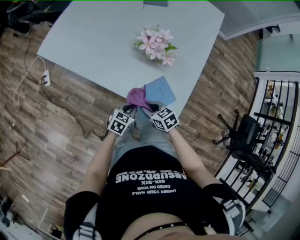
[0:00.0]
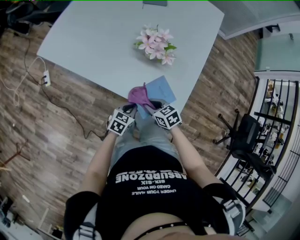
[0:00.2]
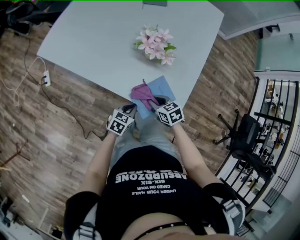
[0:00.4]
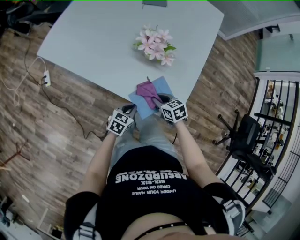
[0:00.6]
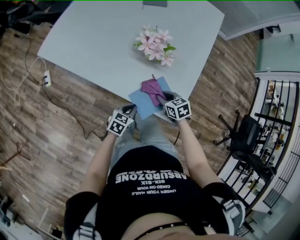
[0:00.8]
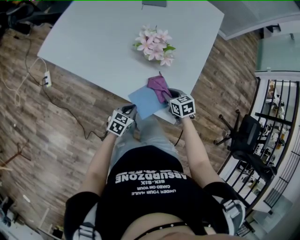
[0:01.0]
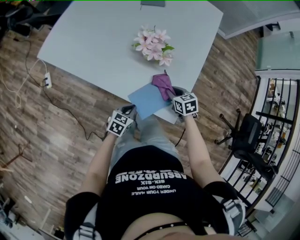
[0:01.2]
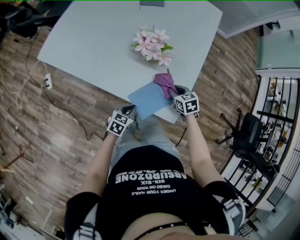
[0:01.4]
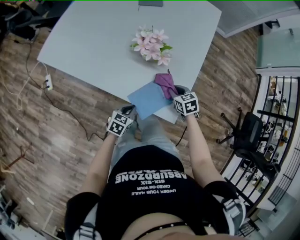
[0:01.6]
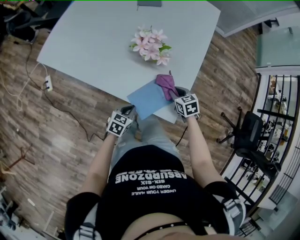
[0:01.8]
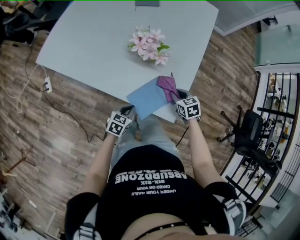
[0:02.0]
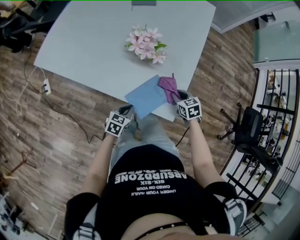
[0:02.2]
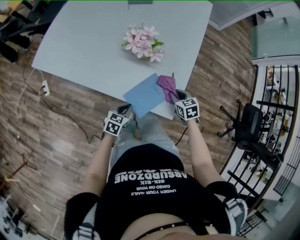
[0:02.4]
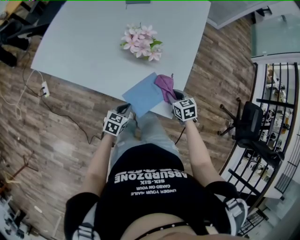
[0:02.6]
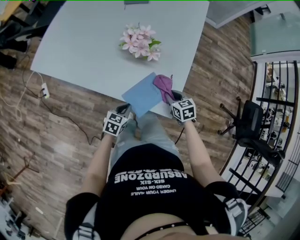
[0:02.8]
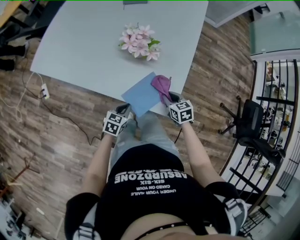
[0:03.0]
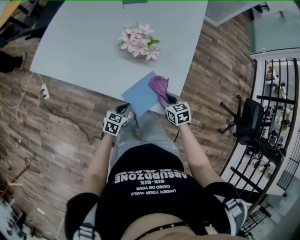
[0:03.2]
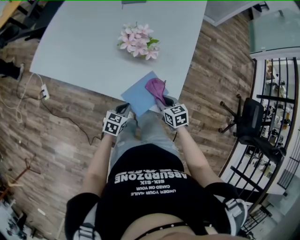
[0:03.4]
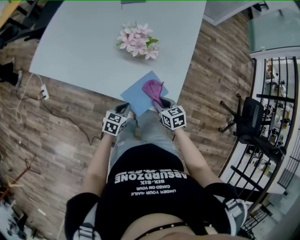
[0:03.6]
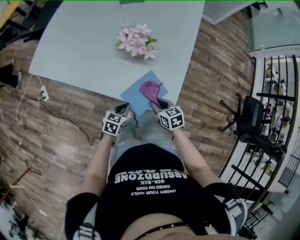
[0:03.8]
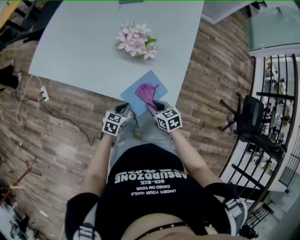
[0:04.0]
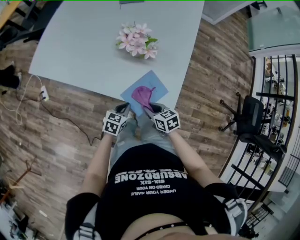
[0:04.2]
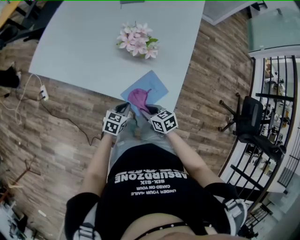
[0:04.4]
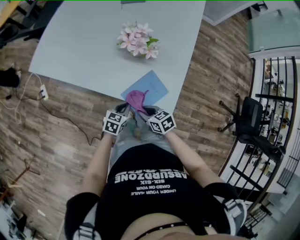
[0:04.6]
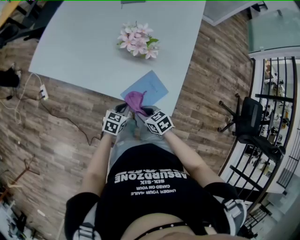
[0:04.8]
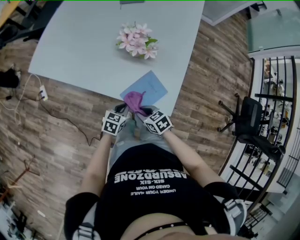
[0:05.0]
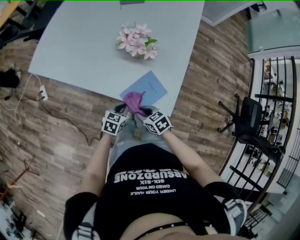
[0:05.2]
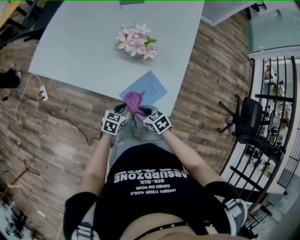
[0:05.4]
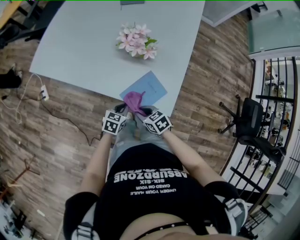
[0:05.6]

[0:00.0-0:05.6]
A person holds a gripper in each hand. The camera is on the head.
0:00.0 to 0:01.4: The right gripper heads to the right and forward, covering about 20 cm, and changes its angle by roughly 20 degrees.
0:01.4 to 0:02.8: The right gripper shifts some 5 cm backward.
0:02.8 to 0:04.2: The right gripper goes approximately 15 cm to the left and backward.
0:04.2 to 0:05.6: The grippers stay close to where they were, moving slightly.

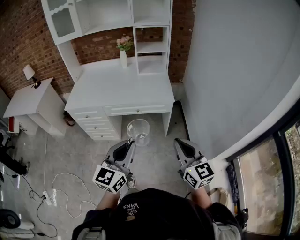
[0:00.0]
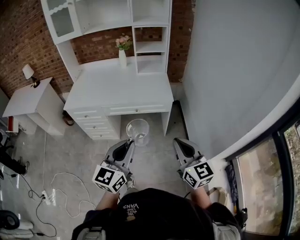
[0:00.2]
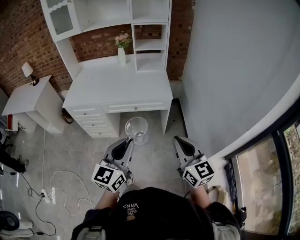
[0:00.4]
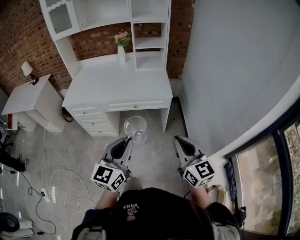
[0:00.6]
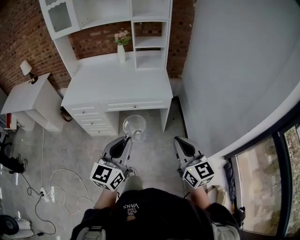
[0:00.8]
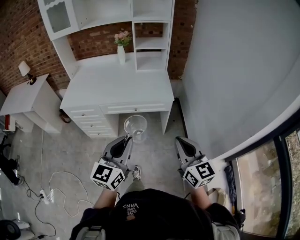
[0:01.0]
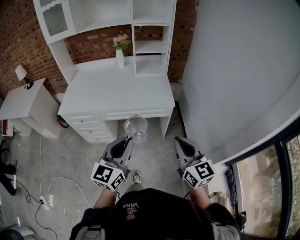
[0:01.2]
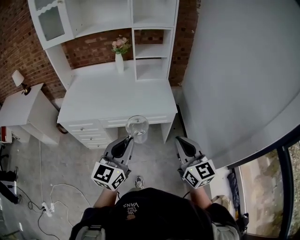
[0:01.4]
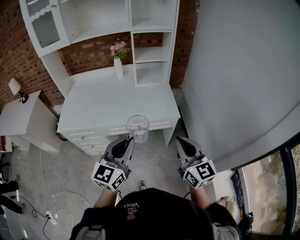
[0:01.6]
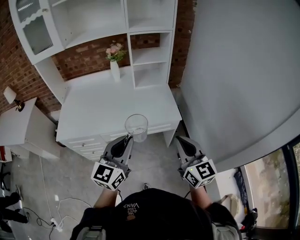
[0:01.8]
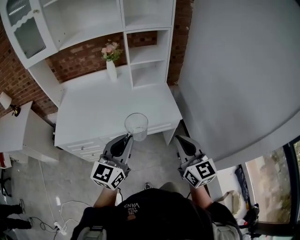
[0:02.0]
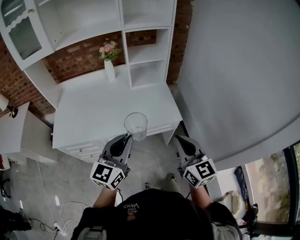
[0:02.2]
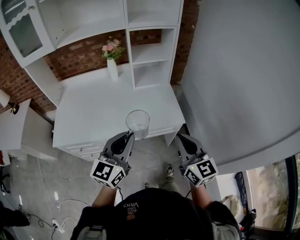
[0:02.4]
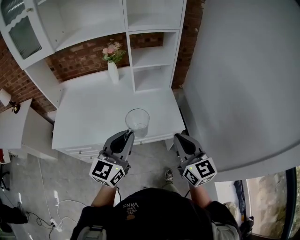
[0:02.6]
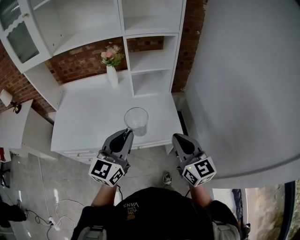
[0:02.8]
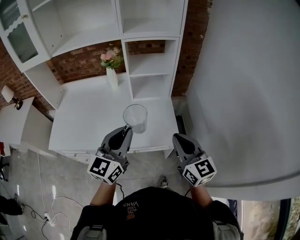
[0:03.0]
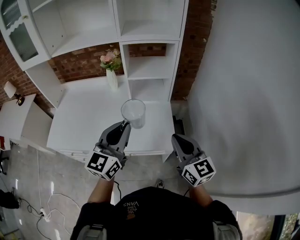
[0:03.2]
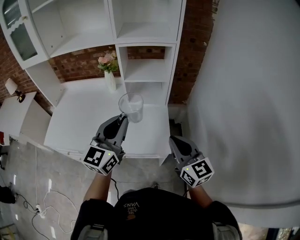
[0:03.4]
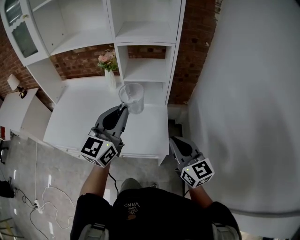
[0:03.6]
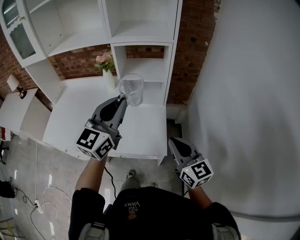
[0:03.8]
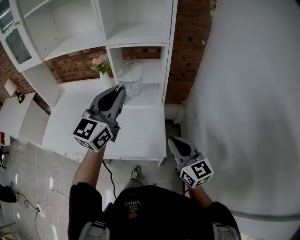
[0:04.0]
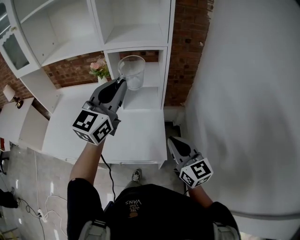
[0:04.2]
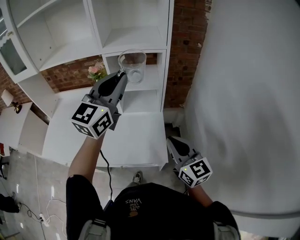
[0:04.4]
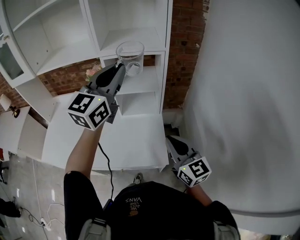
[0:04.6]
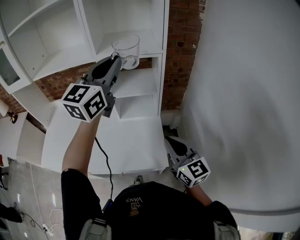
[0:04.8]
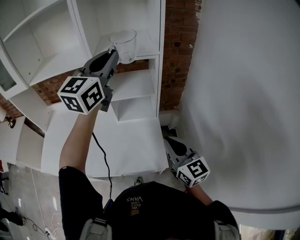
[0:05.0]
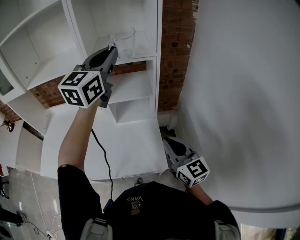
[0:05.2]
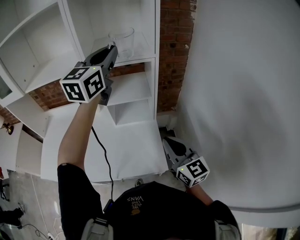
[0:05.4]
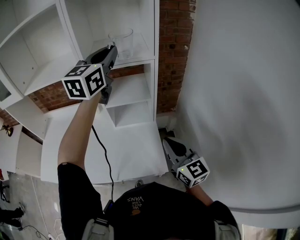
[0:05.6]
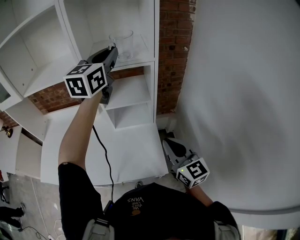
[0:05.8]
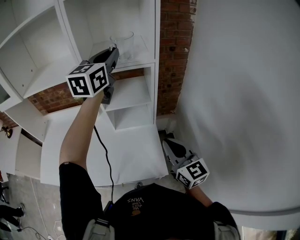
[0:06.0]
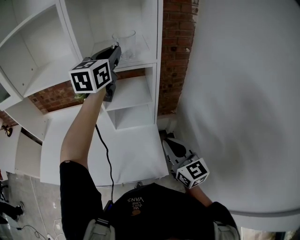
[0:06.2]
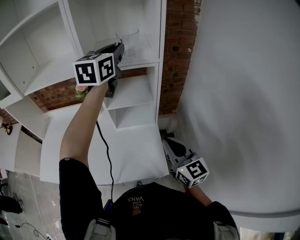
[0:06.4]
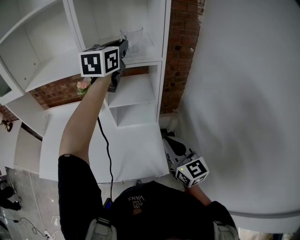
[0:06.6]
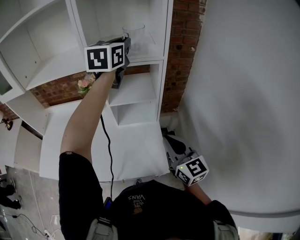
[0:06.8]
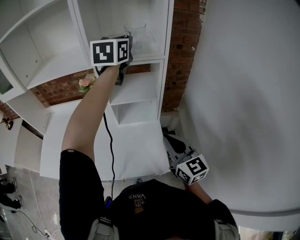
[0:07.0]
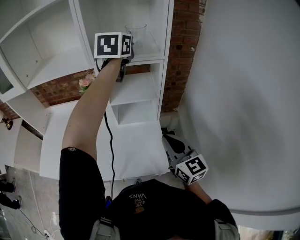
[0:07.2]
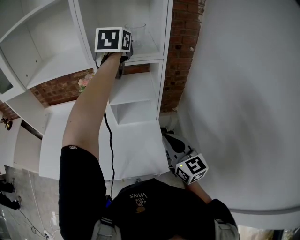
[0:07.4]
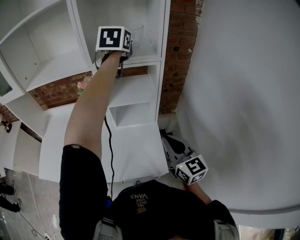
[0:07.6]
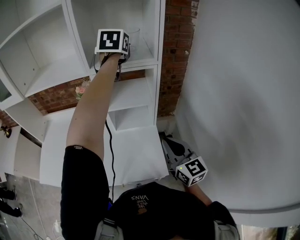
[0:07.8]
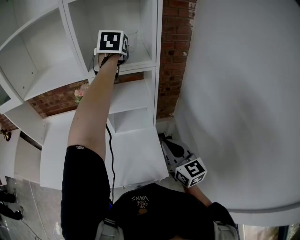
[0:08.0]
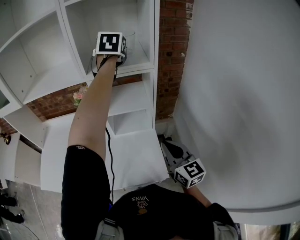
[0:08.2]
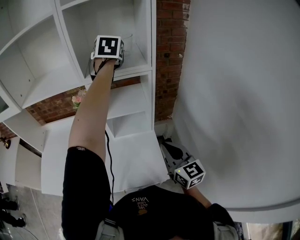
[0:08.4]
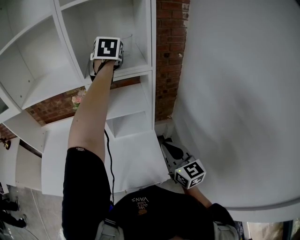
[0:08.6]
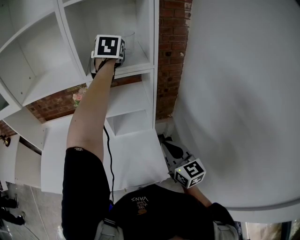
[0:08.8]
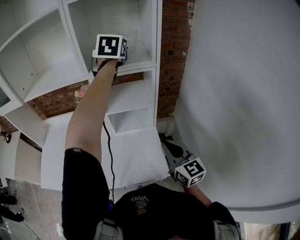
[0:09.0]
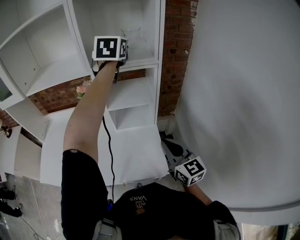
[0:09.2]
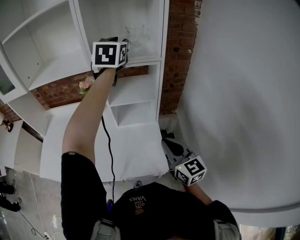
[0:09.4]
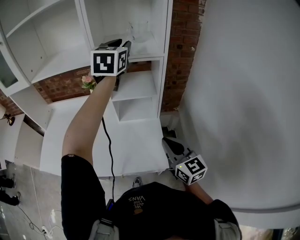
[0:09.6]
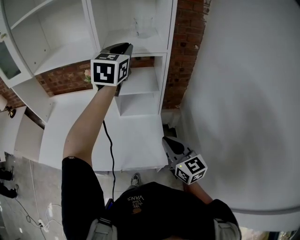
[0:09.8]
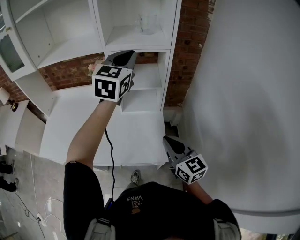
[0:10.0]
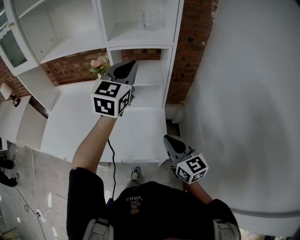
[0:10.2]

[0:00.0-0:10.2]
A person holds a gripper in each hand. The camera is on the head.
0:00.0 to 0:01.4: The grippers both shift forward by roughly 15 cm.
0:01.4 to 0:03.0: The two grippers go approximately 30 cm forward.
0:03.0 to 0:04.4: The left gripper shifts approximately 30 cm forward, upward and to the right. Meanwhile the right gripper travels forward and to the right by approximately 15 cm.
0:04.4 to 0:05.8: The right gripper moves forward, some 5 cm. The left gripper travels forward by approximately 20 cm.
0:05.8 to 0:07.2: The left gripper shifts roughly 5 cm forward.
0:07.2 to 0:08.8: There are only small adjustments of the grippers.
0:08.8 to 0:10.2: The left gripper heads backward, covering approximately 25 cm, turns by approximately 20 degrees, and closes its fingers, while the right gripper is displaced backward by about 5 cm.

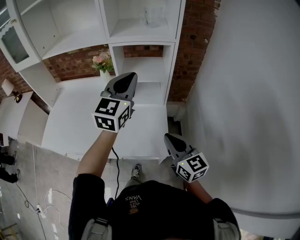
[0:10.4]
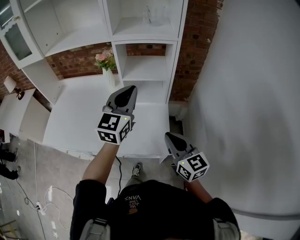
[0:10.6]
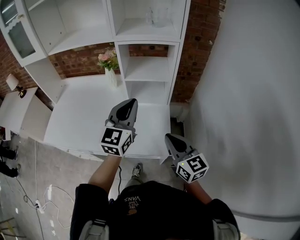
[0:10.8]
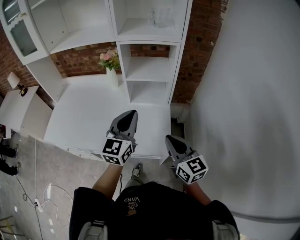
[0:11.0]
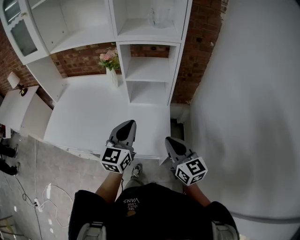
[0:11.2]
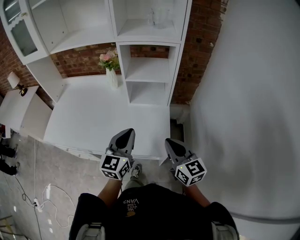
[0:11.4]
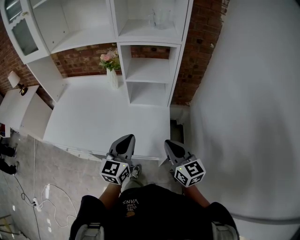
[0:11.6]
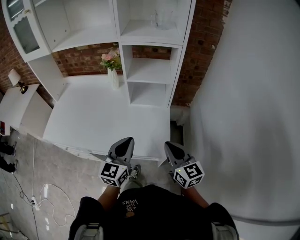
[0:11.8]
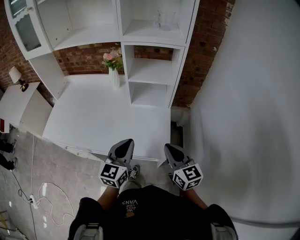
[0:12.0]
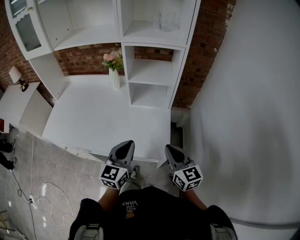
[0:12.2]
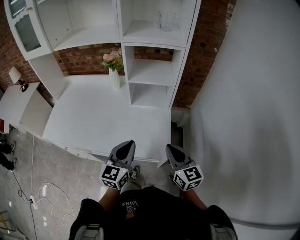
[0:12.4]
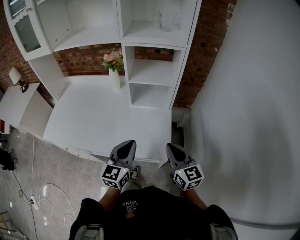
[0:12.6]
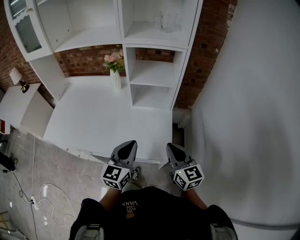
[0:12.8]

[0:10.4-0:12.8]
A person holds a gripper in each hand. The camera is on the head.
0:10.4 to 0:11.6: The left gripper moves downward and backward, some 25 cm.
0:11.6 to 0:12.8: The grippers stay close to where they were, moving slightly.

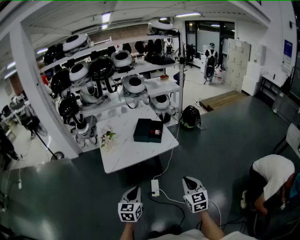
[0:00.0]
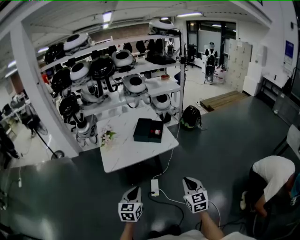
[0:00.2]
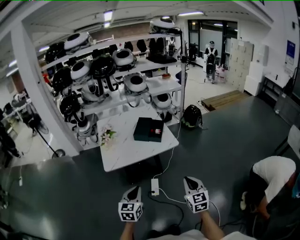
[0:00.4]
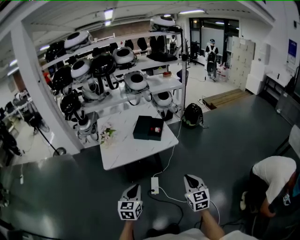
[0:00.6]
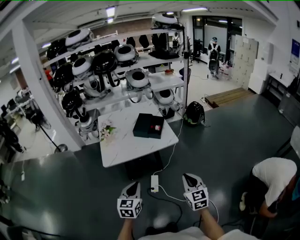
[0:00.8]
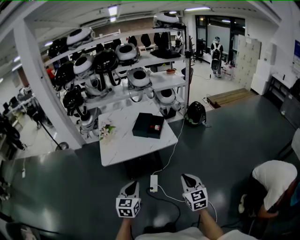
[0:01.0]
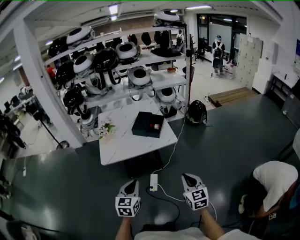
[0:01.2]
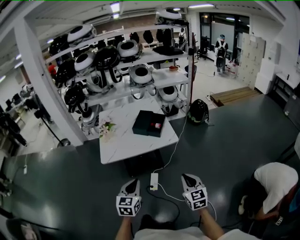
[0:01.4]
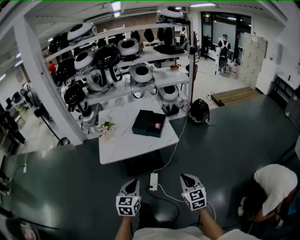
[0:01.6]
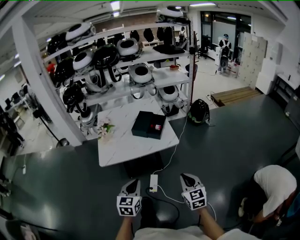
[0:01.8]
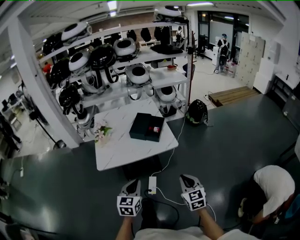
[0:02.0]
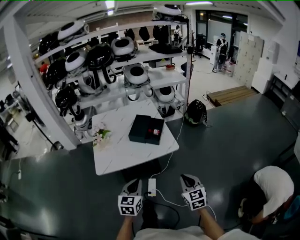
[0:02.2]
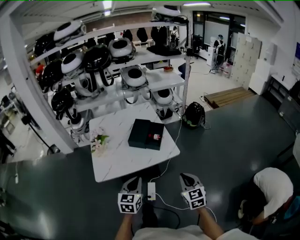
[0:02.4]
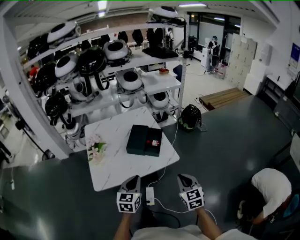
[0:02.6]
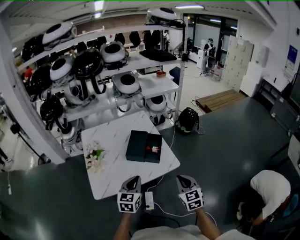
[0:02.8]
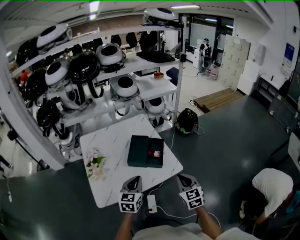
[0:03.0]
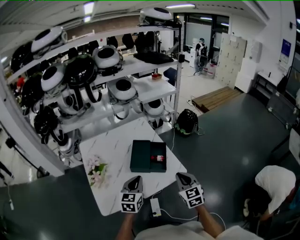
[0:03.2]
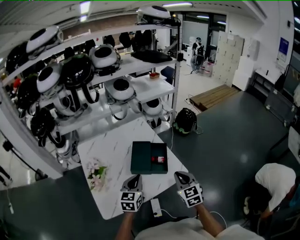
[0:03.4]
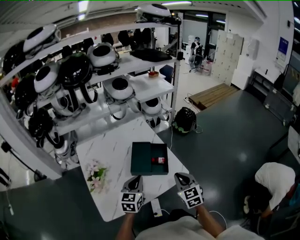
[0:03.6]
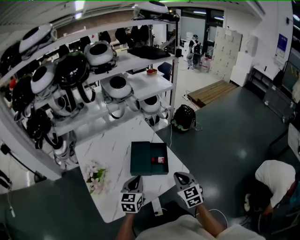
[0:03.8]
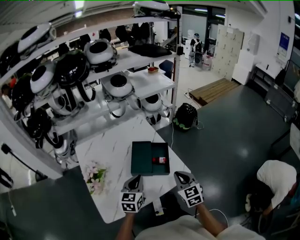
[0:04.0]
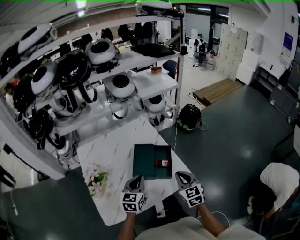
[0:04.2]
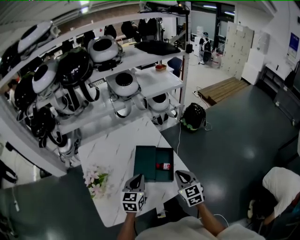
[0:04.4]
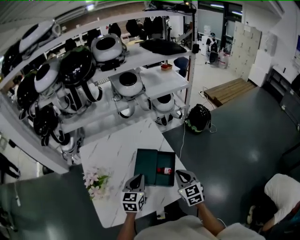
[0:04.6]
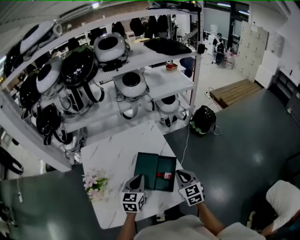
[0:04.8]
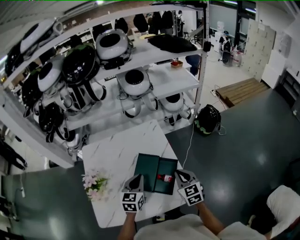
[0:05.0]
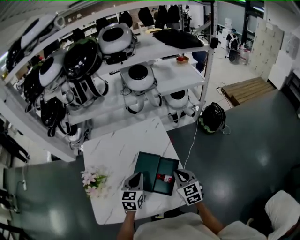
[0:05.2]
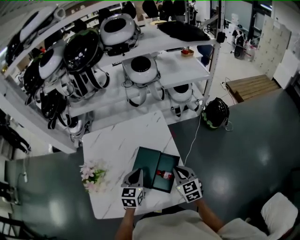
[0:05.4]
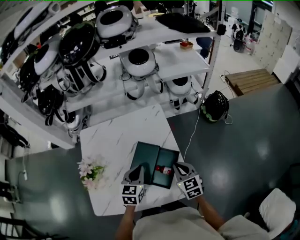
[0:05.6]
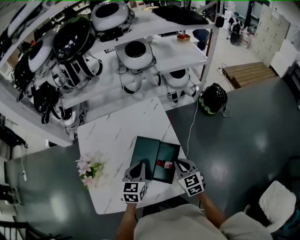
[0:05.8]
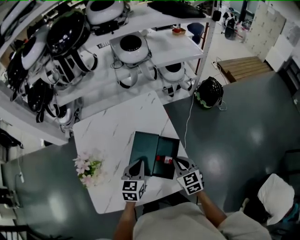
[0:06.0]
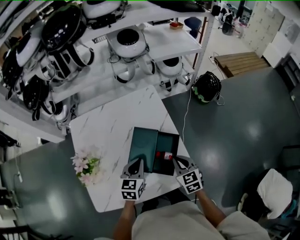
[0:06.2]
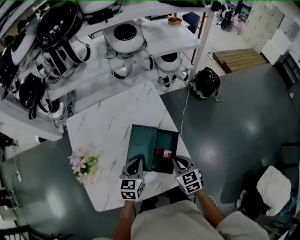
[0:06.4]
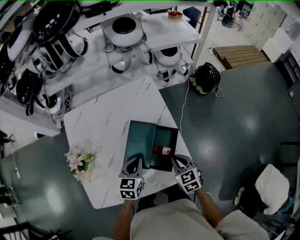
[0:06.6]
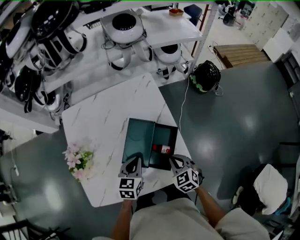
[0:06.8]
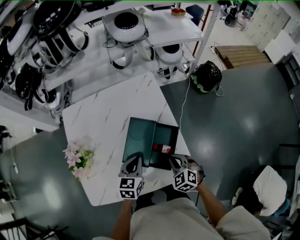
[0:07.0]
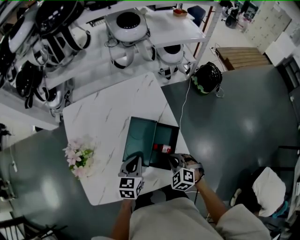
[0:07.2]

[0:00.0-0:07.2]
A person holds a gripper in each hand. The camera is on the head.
0:00.0 to 0:01.4: The two grippers go approximately 10 cm to the right.
0:01.4 to 0:02.8: The two grippers go approximately 30 cm forward.
0:02.8 to 0:04.4: Both grippers travel together forward, roughly 25 cm.
0:04.4 to 0:05.8: The left gripper heads forward, downward and to the right, covering about 15 cm; the right gripper goes roughly 15 cm forward and downward.
0:05.8 to 0:07.2: Both grippers move downward, some 10 cm. The right gripper rotates some 40 degrees.
